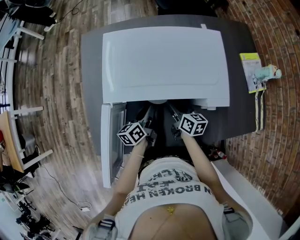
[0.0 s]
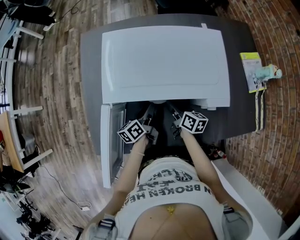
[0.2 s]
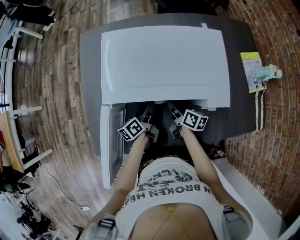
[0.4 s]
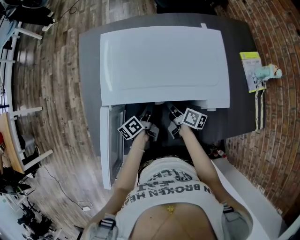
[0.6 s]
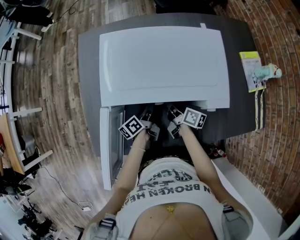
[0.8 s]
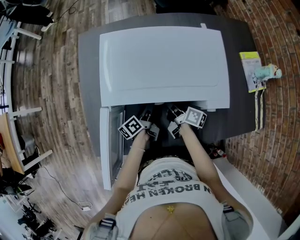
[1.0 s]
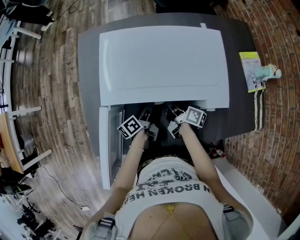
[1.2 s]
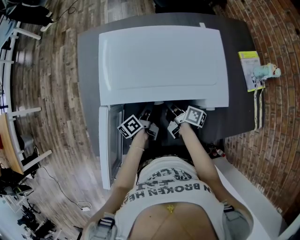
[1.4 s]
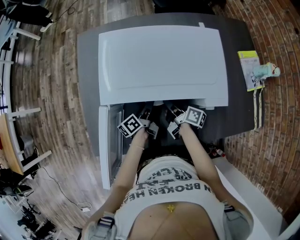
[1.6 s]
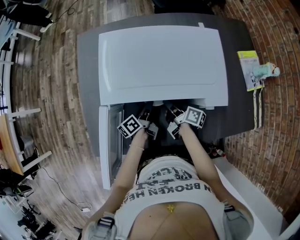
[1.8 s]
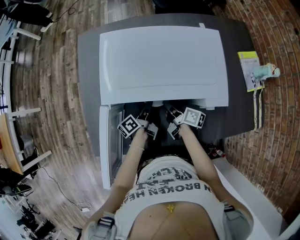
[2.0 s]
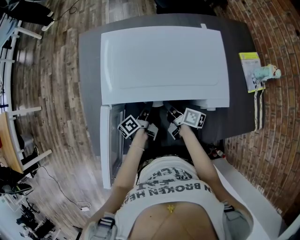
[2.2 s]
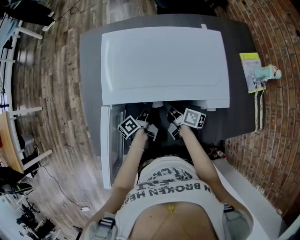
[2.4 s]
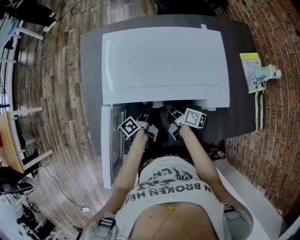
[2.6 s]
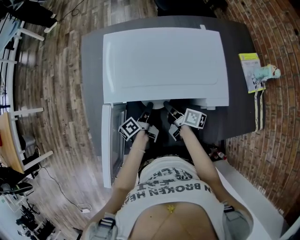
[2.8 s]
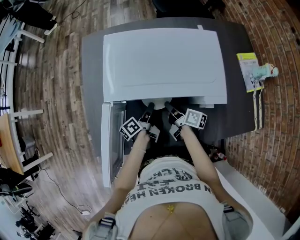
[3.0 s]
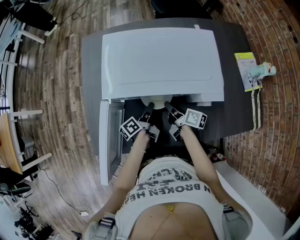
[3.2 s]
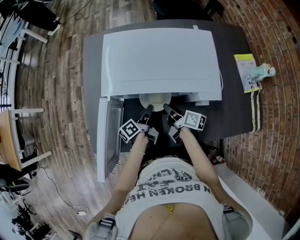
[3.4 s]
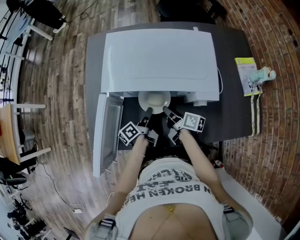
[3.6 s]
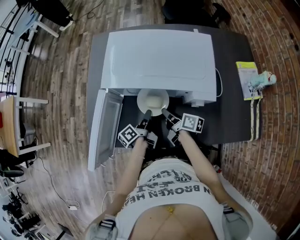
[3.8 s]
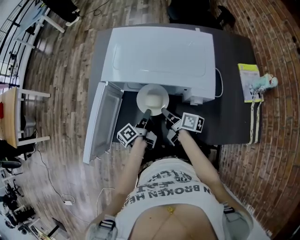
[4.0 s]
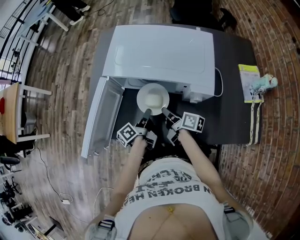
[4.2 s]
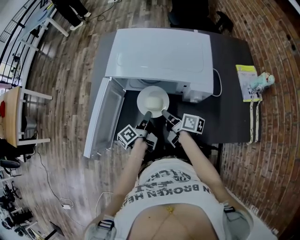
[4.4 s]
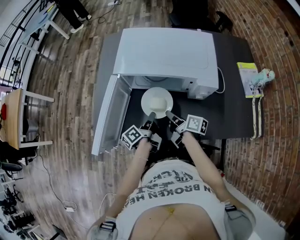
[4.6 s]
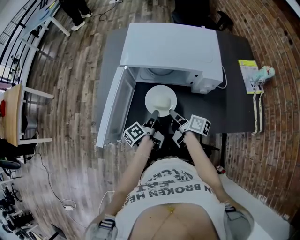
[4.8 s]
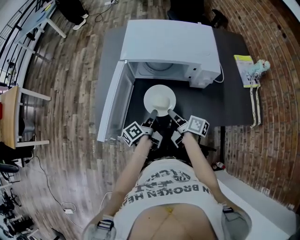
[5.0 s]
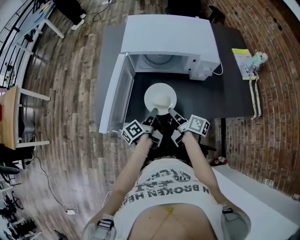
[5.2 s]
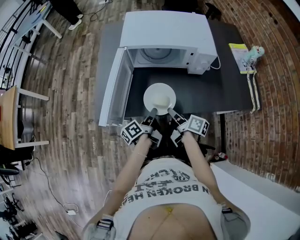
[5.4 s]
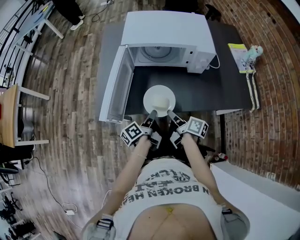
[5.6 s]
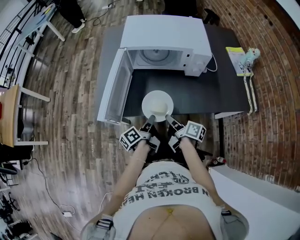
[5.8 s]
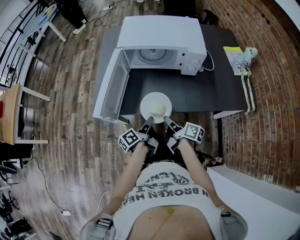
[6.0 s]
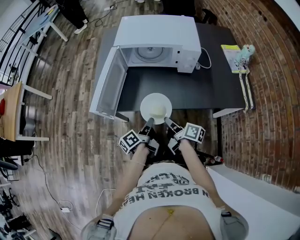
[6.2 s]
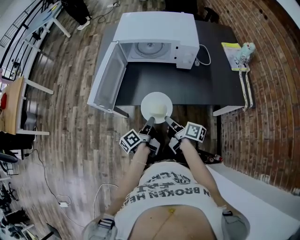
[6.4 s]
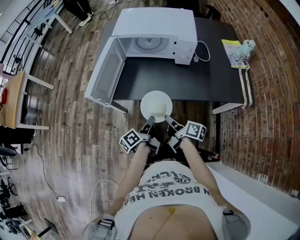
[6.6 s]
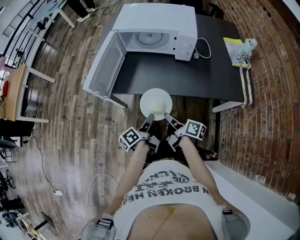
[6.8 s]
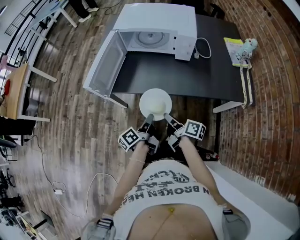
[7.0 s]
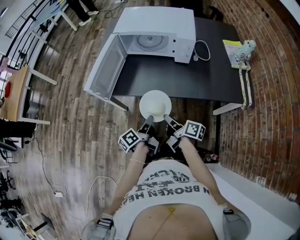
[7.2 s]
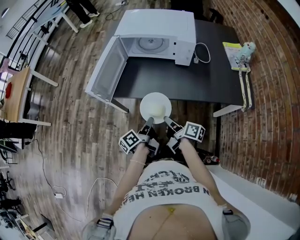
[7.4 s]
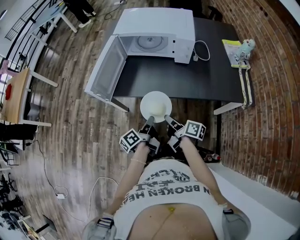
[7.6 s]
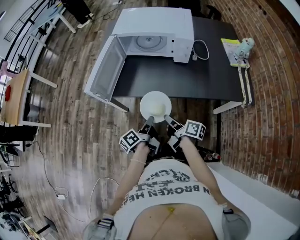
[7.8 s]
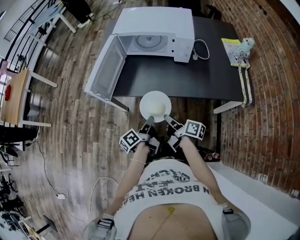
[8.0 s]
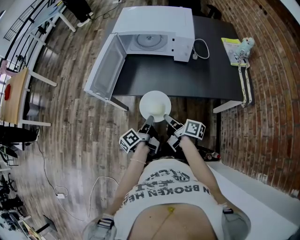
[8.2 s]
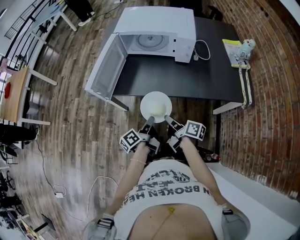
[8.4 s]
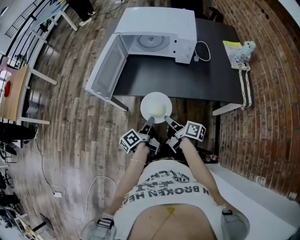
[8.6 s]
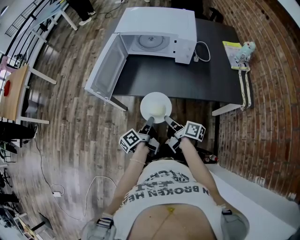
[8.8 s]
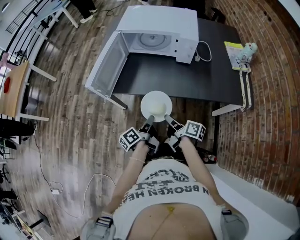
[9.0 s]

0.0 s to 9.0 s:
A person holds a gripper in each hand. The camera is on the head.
0.0 to 1.6 s: The right gripper turns by approximately 30 degrees, and closes; the left gripper turns by approximately 20 degrees.
1.6 to 3.0 s: The grippers make only small movements.
3.0 to 4.4 s: The two grippers go roughly 10 cm backward.
4.4 to 6.0 s: The grippers both shift backward by approximately 20 cm.
6.0 to 7.6 s: Both grippers move backward and to the right, roughly 15 cm.
7.6 to 9.0 s: The two grippers keep their place.

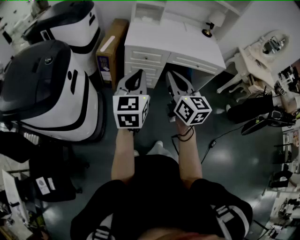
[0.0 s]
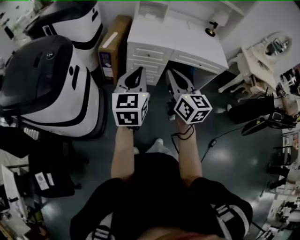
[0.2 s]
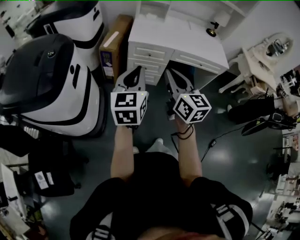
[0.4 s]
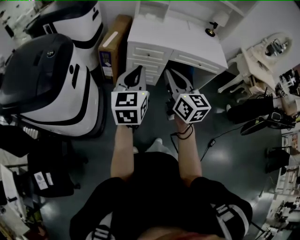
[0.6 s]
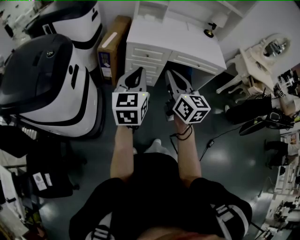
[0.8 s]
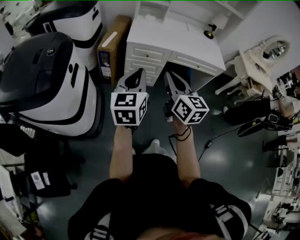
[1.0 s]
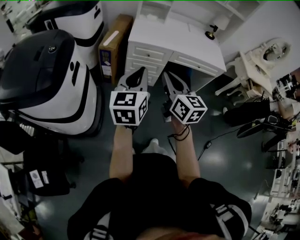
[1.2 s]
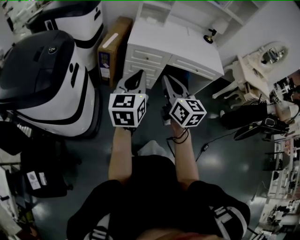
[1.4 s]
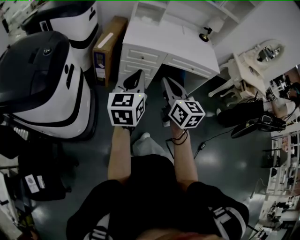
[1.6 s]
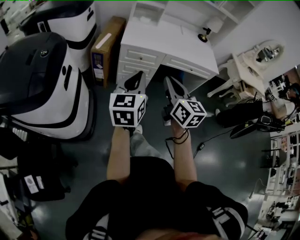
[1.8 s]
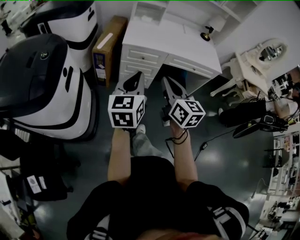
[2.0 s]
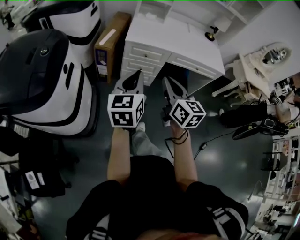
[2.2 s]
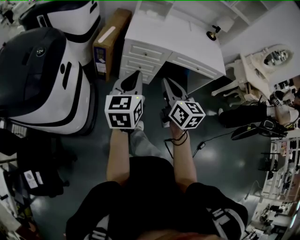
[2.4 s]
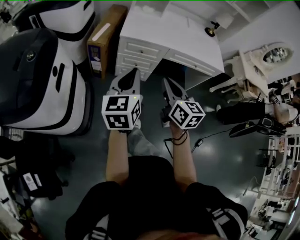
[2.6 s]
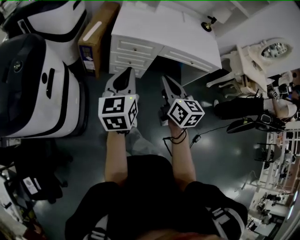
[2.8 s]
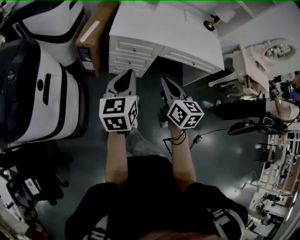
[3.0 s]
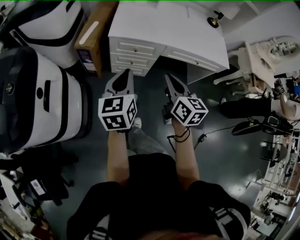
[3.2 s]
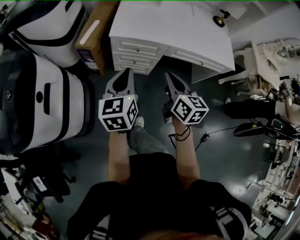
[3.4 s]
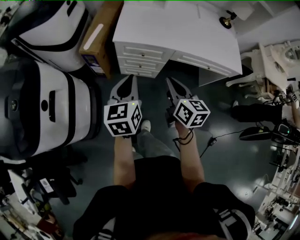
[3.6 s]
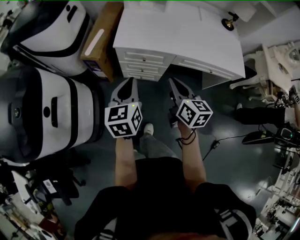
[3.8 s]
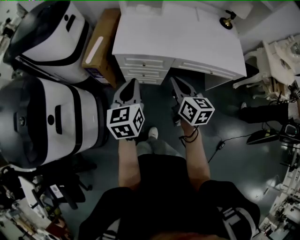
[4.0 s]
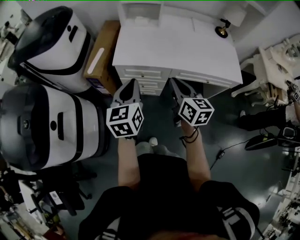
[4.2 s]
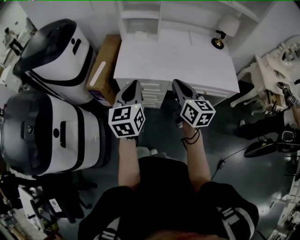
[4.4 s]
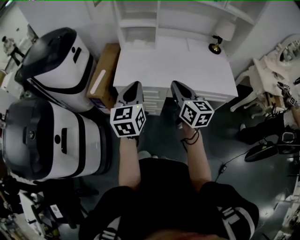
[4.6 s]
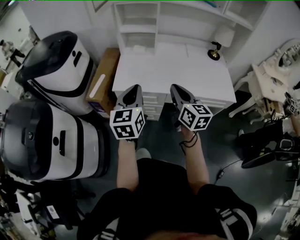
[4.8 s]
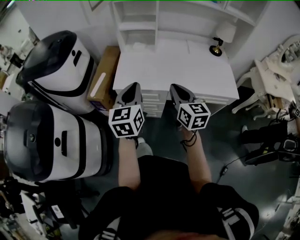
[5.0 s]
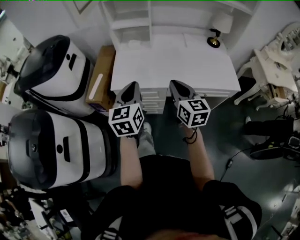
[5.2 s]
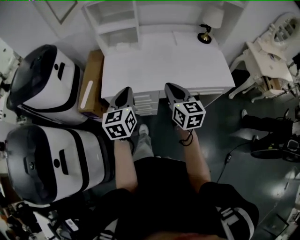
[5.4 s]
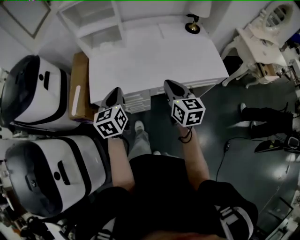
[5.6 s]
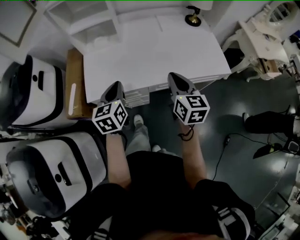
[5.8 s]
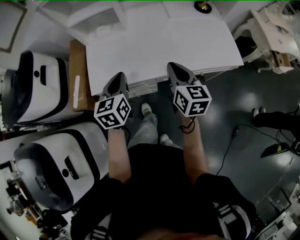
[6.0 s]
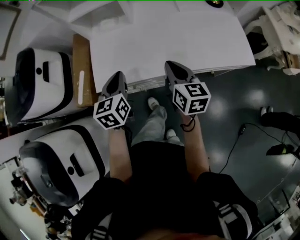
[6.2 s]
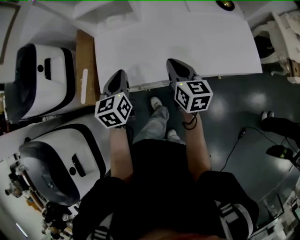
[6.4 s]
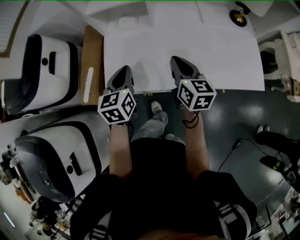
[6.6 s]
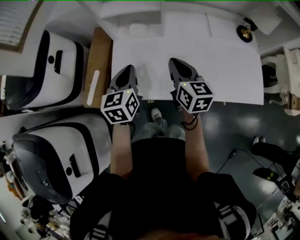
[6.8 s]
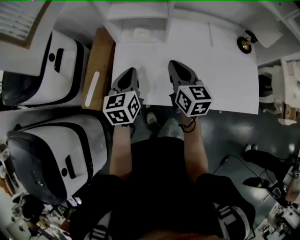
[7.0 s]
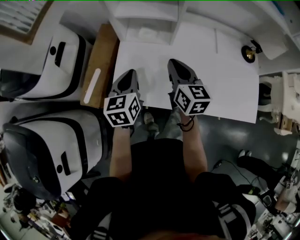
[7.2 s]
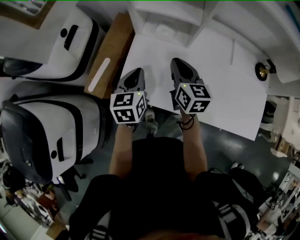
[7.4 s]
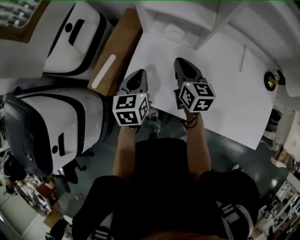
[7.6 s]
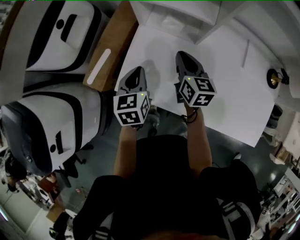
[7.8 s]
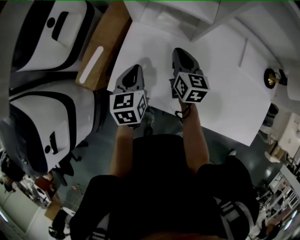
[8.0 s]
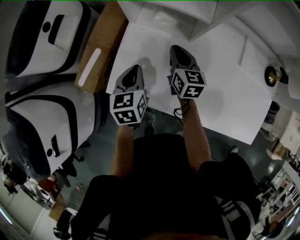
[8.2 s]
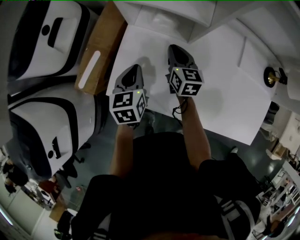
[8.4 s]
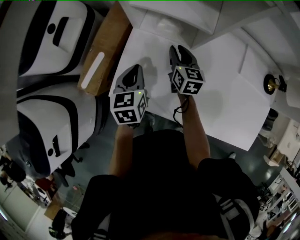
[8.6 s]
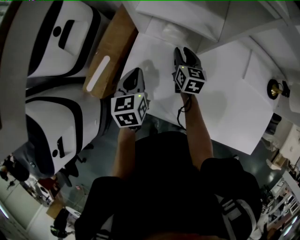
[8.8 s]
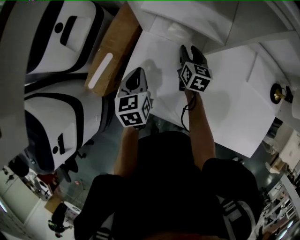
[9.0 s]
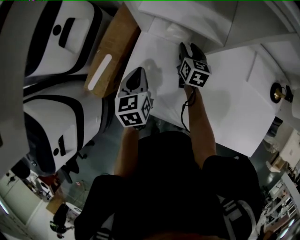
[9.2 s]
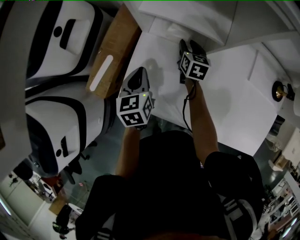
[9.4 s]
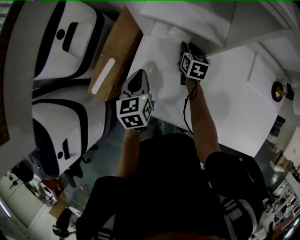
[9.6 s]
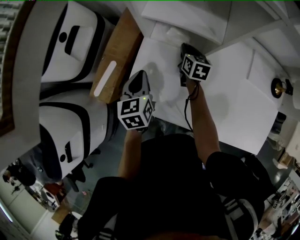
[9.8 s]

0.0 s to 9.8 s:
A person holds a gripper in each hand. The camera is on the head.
0.0 to 1.4 s: The grippers move only a little.
1.4 to 2.8 s: The right gripper moves forward, to the right and downward, some 15 cm, while the left gripper shifts about 10 cm forward.
2.8 to 4.2 s: The two grippers go roughly 20 cm forward and to the right.
4.2 to 5.6 s: The left gripper goes some 20 cm forward and to the right, while the right gripper shifts about 15 cm to the right and forward.
5.6 to 7.0 s: The left gripper is displaced forward by approximately 20 cm; the right gripper moves forward and to the left, approximately 30 cm.
7.0 to 8.4 s: The left gripper heads downward and forward, covering roughly 15 cm, and rotates roughly 20 degrees, while the right gripper is displaced forward and downward by about 25 cm.
8.4 to 9.8 s: The left gripper shifts by about 5 cm; the right gripper goes approximately 10 cm forward, and opens, then closes once more.

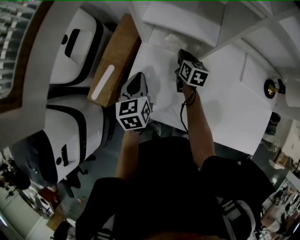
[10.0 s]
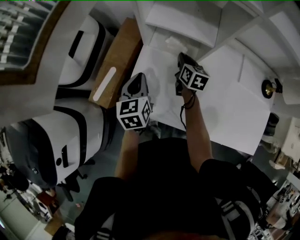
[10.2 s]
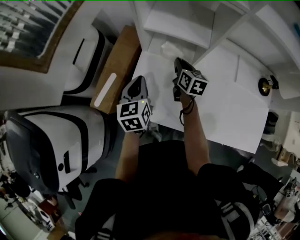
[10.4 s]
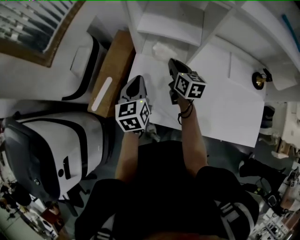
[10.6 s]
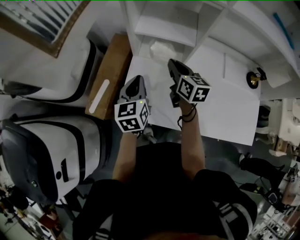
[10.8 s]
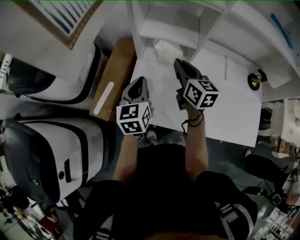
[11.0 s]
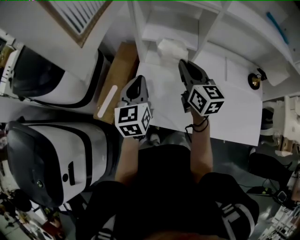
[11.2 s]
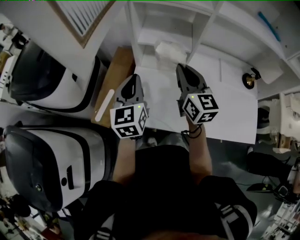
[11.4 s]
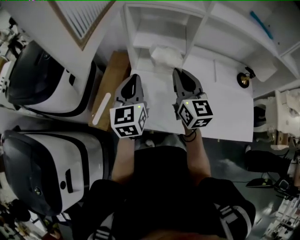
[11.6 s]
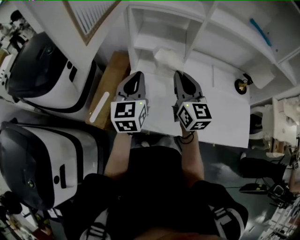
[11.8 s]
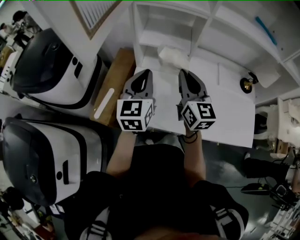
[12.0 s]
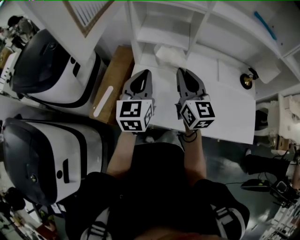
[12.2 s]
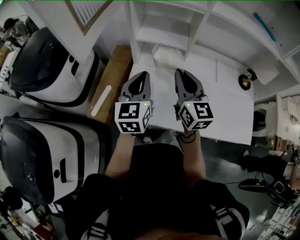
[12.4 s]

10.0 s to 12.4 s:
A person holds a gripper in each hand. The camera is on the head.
10.0 to 11.2 s: The right gripper is displaced upward and backward by roughly 30 cm, and turns by roughly 30 degrees, while the left gripper is displaced upward by roughly 15 cm, and swivels roughly 20 degrees.
11.2 to 12.4 s: The right gripper moves backward, some 5 cm. The left gripper changes place by about 5 cm.

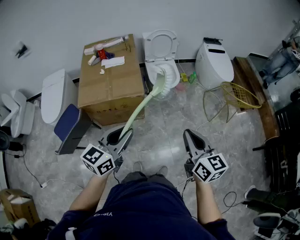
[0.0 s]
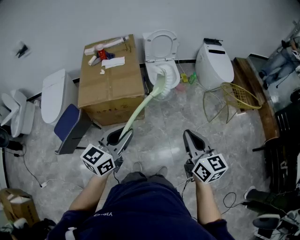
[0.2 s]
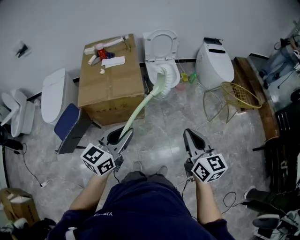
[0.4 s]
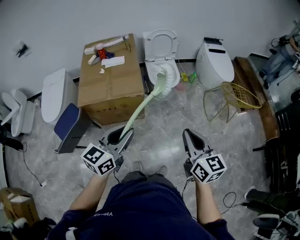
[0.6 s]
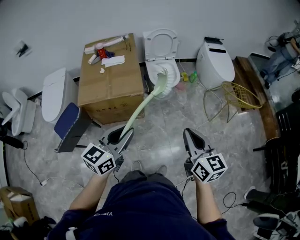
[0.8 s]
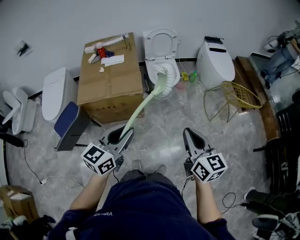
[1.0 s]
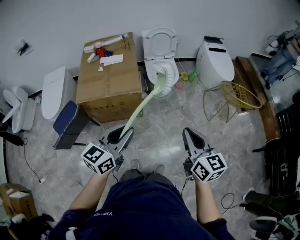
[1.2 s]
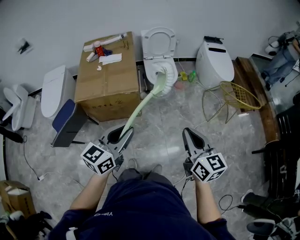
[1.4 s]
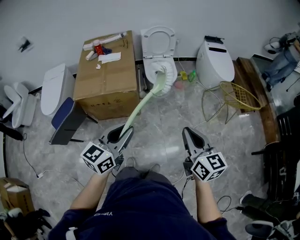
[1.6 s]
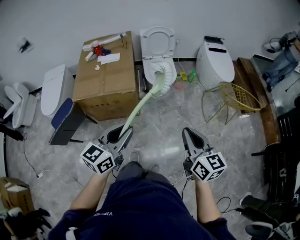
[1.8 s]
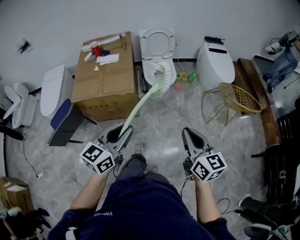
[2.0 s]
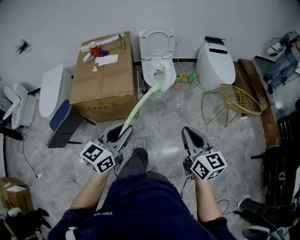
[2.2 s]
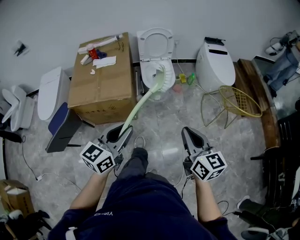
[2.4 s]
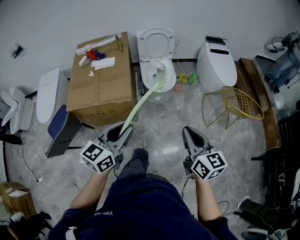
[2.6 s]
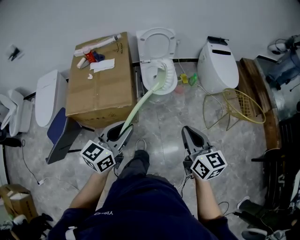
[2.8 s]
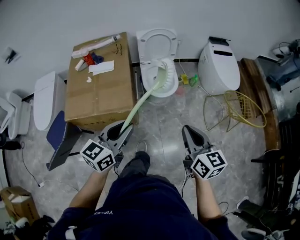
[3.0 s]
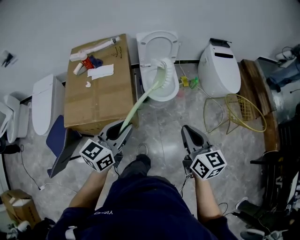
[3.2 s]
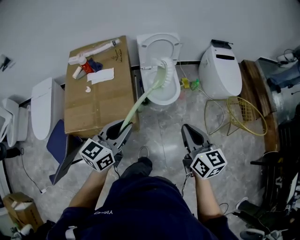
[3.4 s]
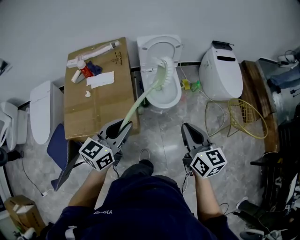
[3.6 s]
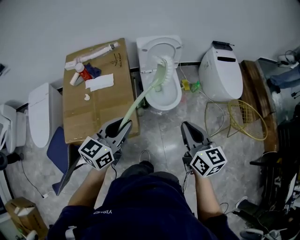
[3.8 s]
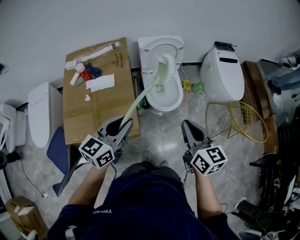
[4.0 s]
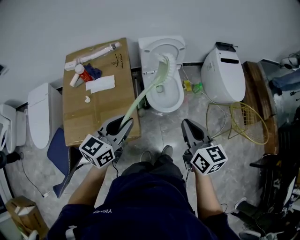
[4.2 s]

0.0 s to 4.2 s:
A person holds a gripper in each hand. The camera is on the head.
0.0 to 1.4 s: Both grippers move to the right, approximately 5 cm.
1.4 to 2.8 s: The grippers both shift forward by about 15 cm.
2.8 to 4.2 s: The two grippers go about 25 cm forward and to the left.
